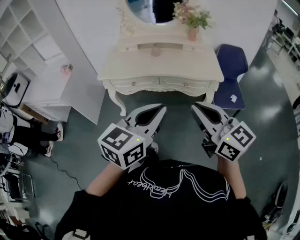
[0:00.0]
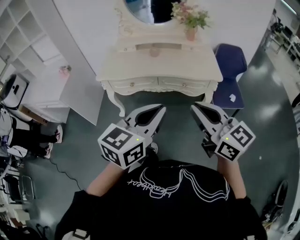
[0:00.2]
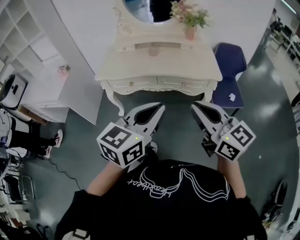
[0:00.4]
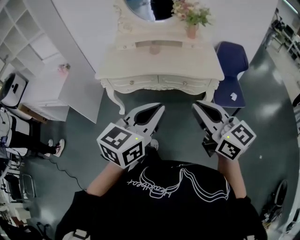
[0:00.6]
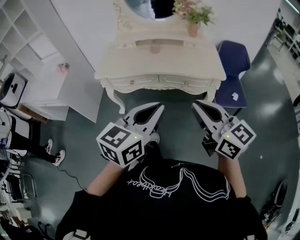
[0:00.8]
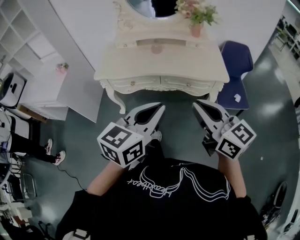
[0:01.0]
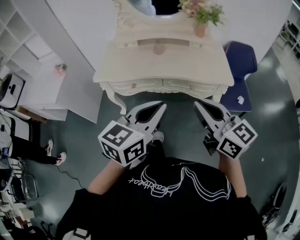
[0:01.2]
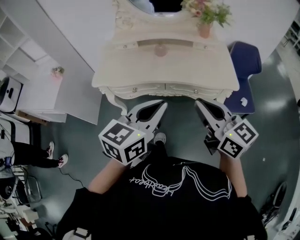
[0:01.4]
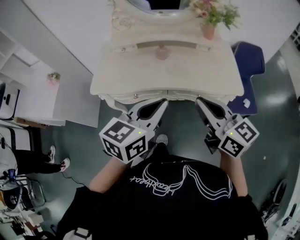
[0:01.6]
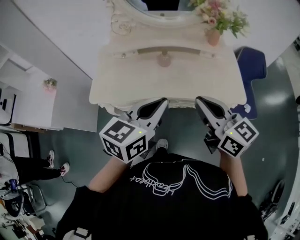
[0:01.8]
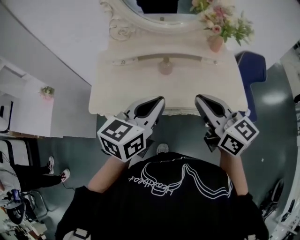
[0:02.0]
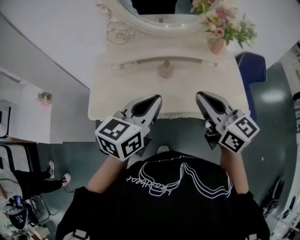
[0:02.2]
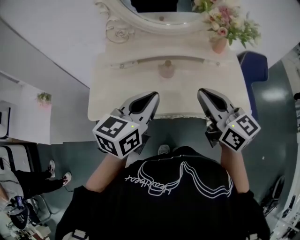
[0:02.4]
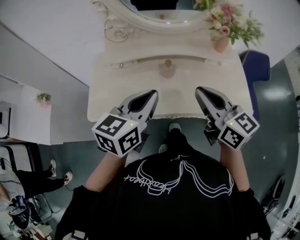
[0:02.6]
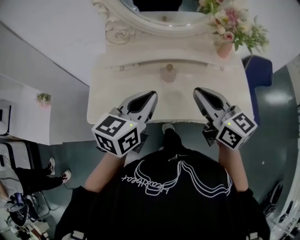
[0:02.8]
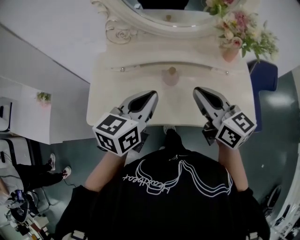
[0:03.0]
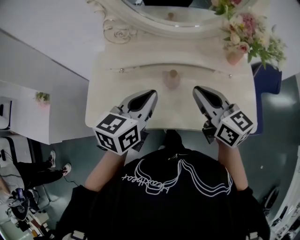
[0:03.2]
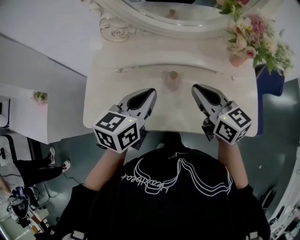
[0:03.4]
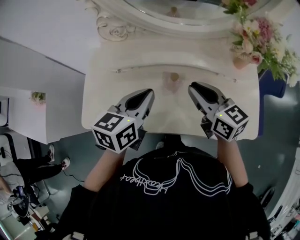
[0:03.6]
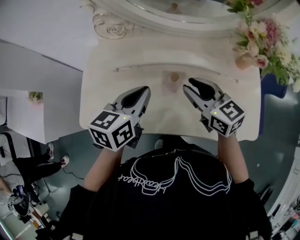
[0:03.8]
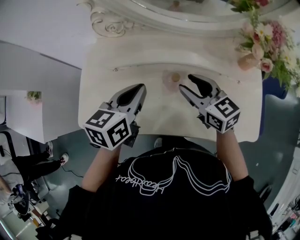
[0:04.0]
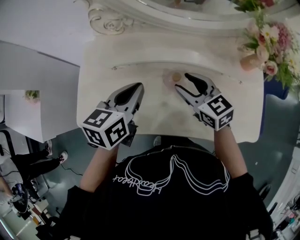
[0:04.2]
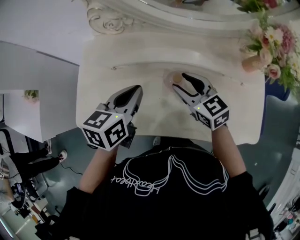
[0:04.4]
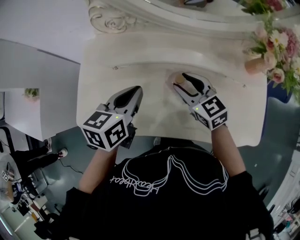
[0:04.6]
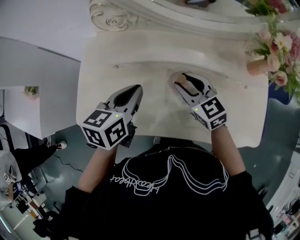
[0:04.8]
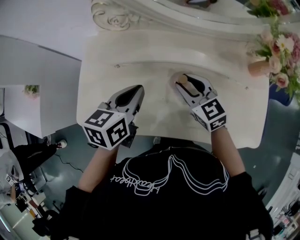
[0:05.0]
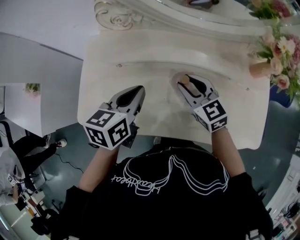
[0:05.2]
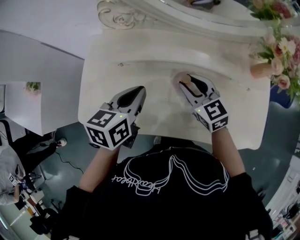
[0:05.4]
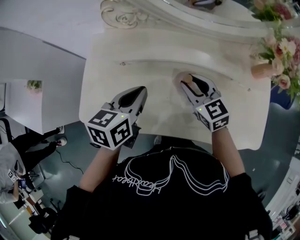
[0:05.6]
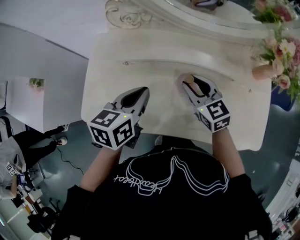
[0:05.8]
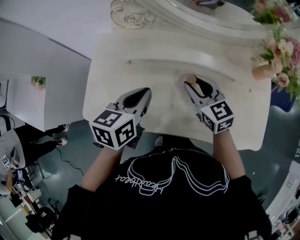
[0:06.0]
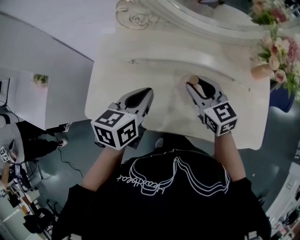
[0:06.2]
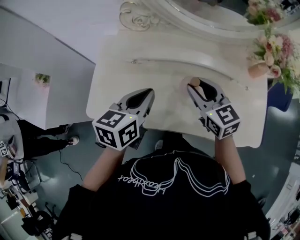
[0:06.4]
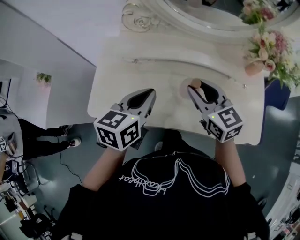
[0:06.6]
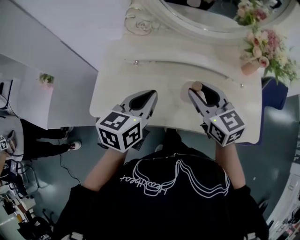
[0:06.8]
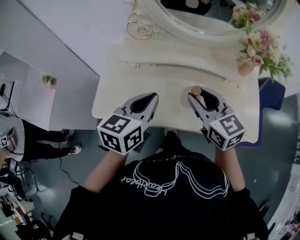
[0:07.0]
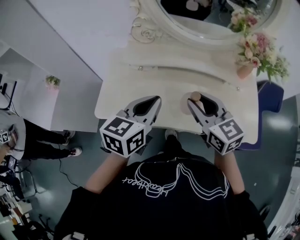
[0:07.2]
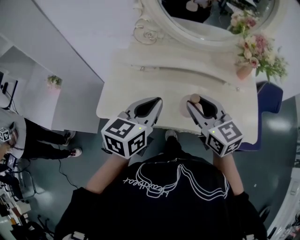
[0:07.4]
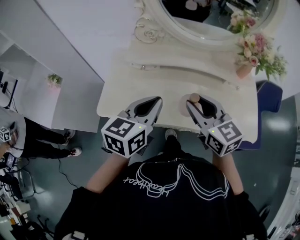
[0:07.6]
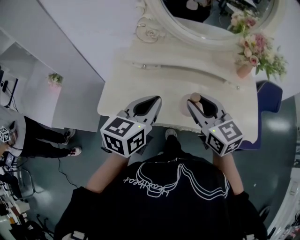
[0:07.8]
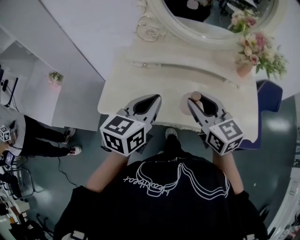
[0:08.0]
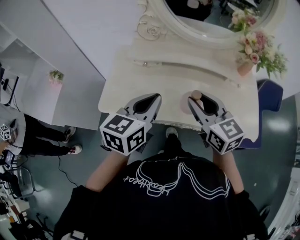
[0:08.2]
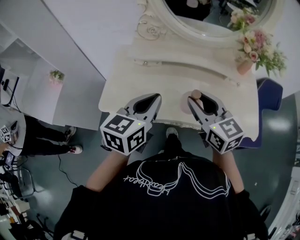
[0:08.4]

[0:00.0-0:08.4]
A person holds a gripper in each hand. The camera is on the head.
0.0 to 1.4 s: The two grippers go approximately 20 cm forward.
1.4 to 2.8 s: The two grippers go approximately 30 cm forward.
2.8 to 4.2 s: The two grippers go approximately 20 cm forward and downward. The right gripper rotates about 30 degrees, and opens.
4.2 to 5.6 s: The grippers make only small movements.
5.6 to 7.0 s: The right gripper moves upward and backward, some 20 cm. The left gripper travels backward and upward by some 15 cm.
7.0 to 8.4 s: Both grippers travel together backward, roughly 5 cm.

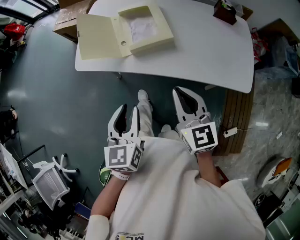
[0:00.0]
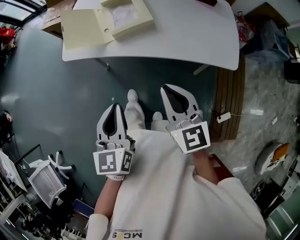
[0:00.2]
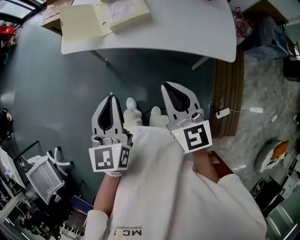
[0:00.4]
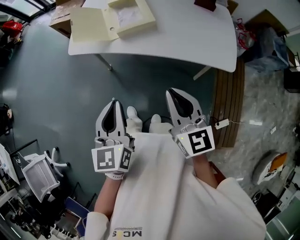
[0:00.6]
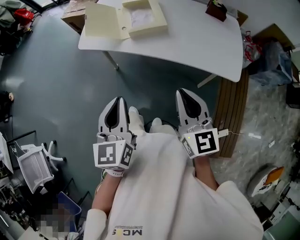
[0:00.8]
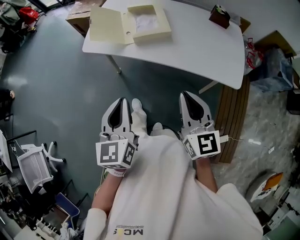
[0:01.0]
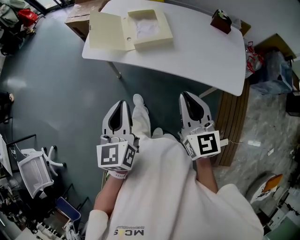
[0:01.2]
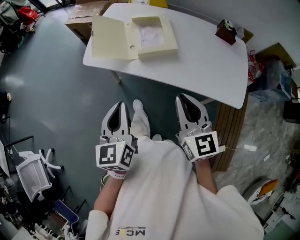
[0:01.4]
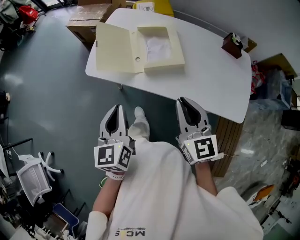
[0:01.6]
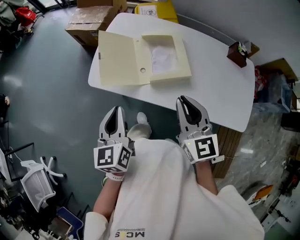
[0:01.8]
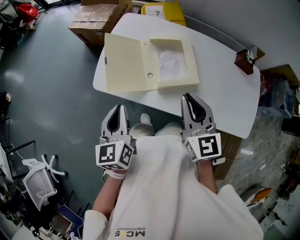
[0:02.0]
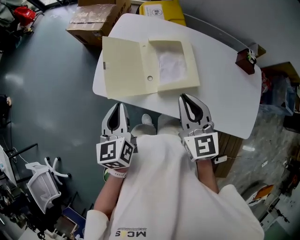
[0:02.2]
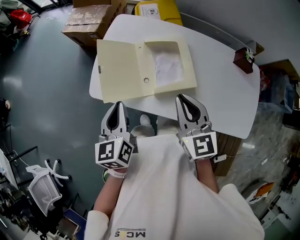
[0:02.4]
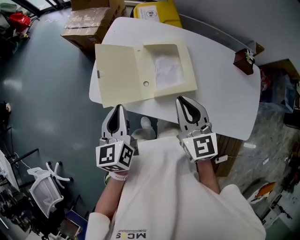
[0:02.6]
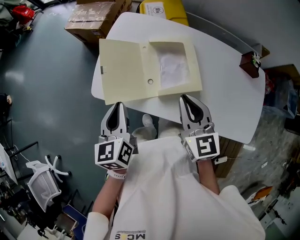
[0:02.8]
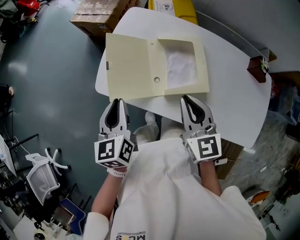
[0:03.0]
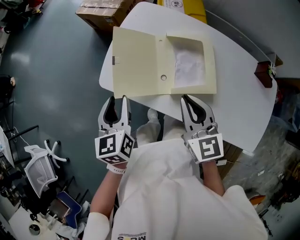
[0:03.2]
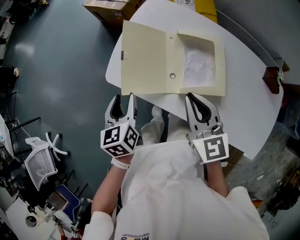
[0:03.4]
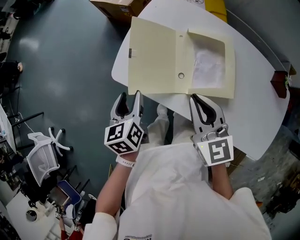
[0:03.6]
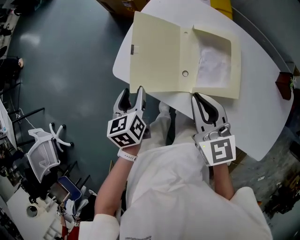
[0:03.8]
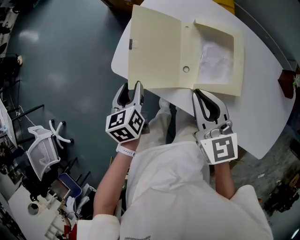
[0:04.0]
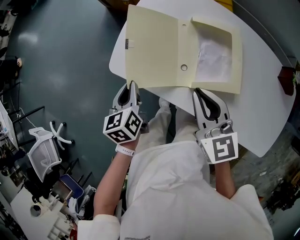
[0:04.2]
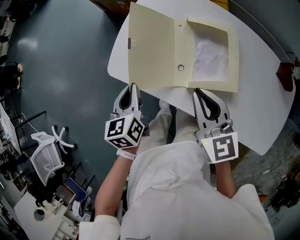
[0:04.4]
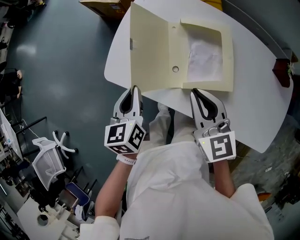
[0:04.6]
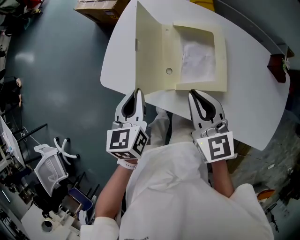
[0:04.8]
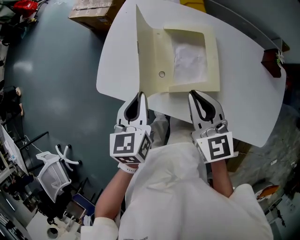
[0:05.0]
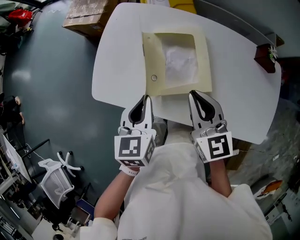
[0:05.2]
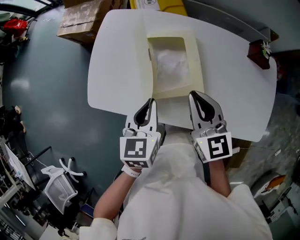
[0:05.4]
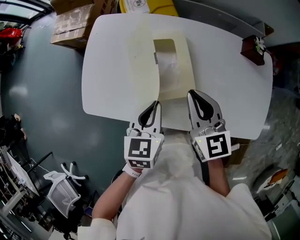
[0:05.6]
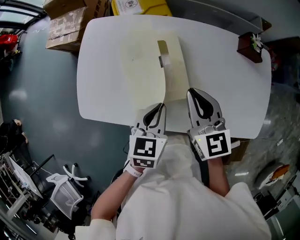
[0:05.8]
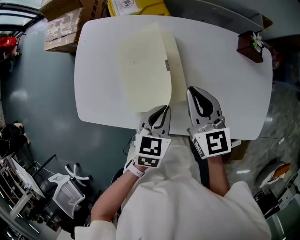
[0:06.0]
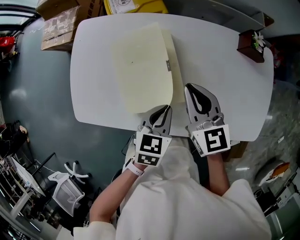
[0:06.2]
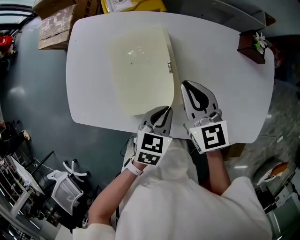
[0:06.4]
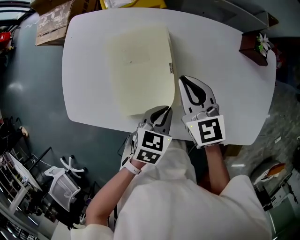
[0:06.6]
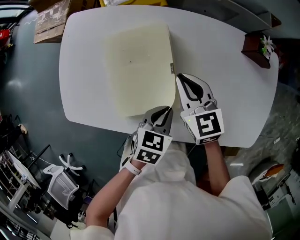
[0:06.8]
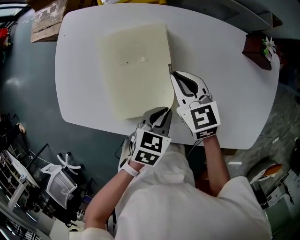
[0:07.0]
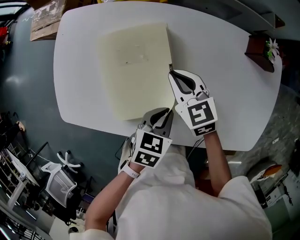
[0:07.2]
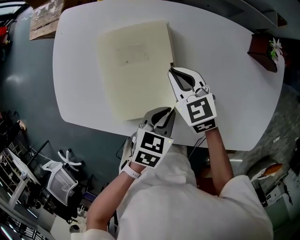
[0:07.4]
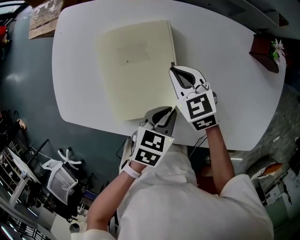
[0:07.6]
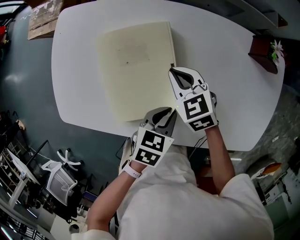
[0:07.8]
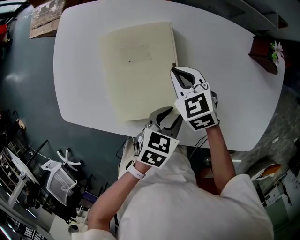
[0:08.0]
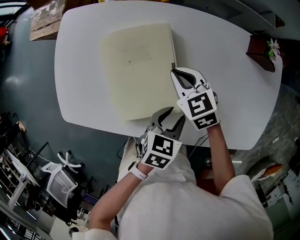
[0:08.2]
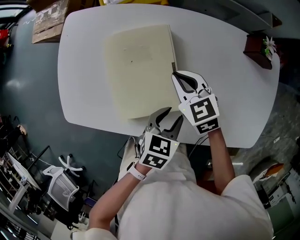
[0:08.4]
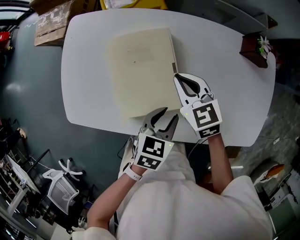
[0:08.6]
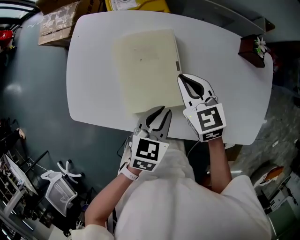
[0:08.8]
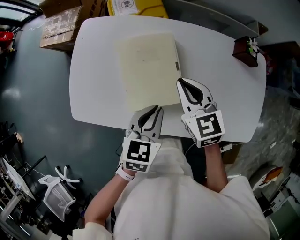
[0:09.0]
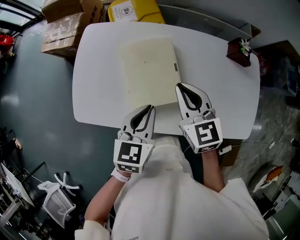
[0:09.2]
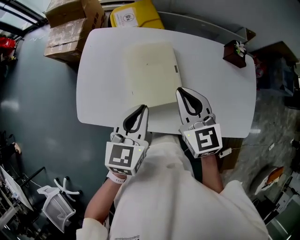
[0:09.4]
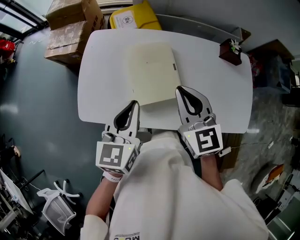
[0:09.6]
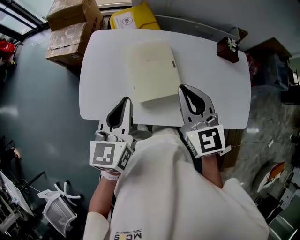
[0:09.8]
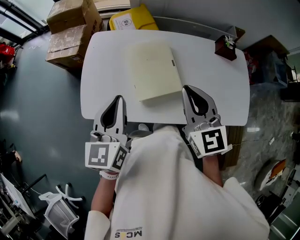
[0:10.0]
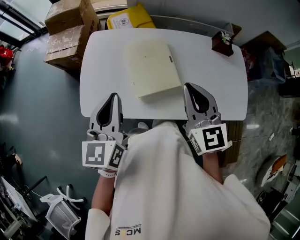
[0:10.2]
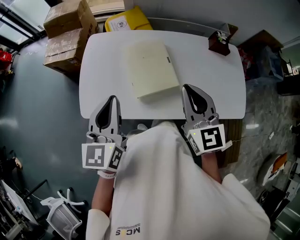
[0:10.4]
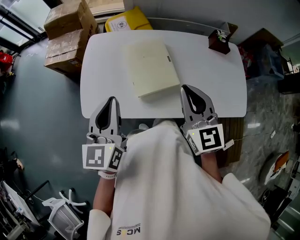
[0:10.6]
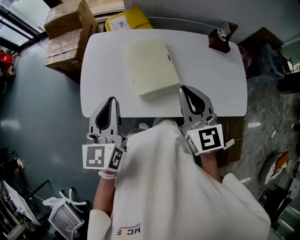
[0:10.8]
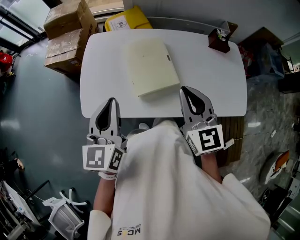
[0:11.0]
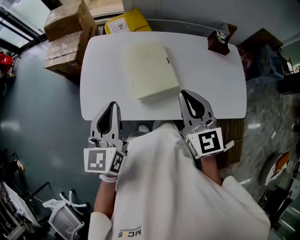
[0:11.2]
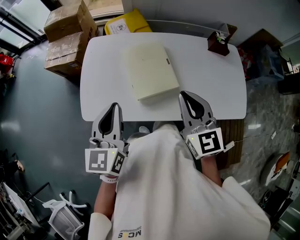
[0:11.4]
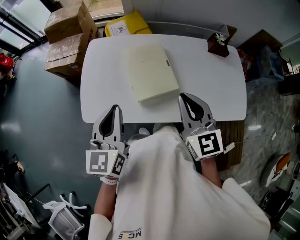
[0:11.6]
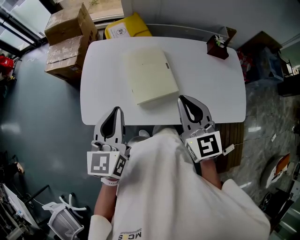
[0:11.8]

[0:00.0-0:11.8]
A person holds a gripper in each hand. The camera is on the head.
0.0 to 1.4 s: The right gripper goes backward and returns, about 15 cm each way; the left gripper shifts about 5 cm upward, reaches approximately 10 cm backward, then returns, and closes its fingers.
1.4 to 3.0 s: The grippers both shift forward by approximately 30 cm.
3.0 to 4.4 s: The right gripper moves some 10 cm; the left gripper moves downward, some 10 cm, and opens, then closes once more.
4.4 to 6.0 s: The left gripper ends up some 35 cm from where it was, and changes its angle by roughly 50 degrees. The right gripper ends up roughly 25 cm from where it was, and turns by roughly 20 degrees.
6.0 to 7.4 s: The left gripper heads downward and to the right, covering roughly 10 cm, while the right gripper goes approximately 20 cm downward and forward, and changes its angle by about 30 degrees.
7.4 to 8.8 s: The right gripper moves upward, roughly 10 cm; the left gripper heads upward and to the left, covering some 10 cm, and opens, then closes once more.
8.8 to 10.4 s: The right gripper shifts approximately 30 cm upward and backward, and changes its angle by approximately 30 degrees, while the left gripper shifts about 30 cm upward and to the left, and points its fingers approximately 30 degrees further upward.
10.4 to 11.8 s: The grippers move only a little.

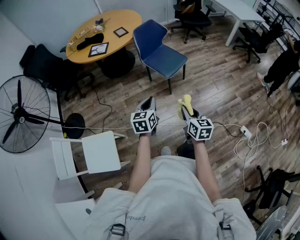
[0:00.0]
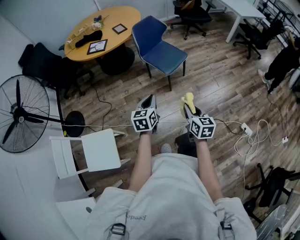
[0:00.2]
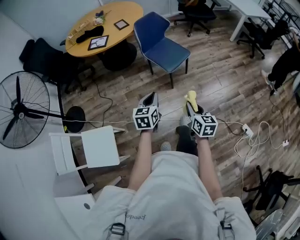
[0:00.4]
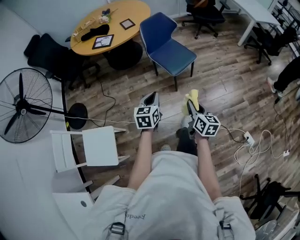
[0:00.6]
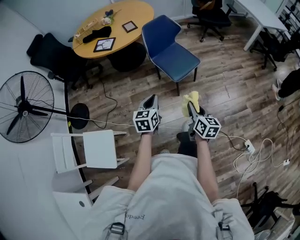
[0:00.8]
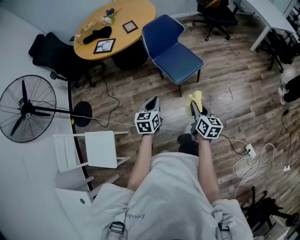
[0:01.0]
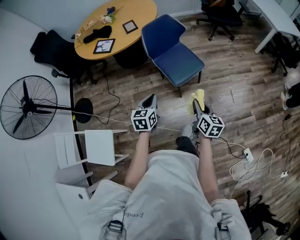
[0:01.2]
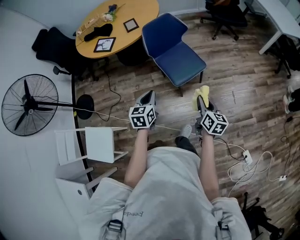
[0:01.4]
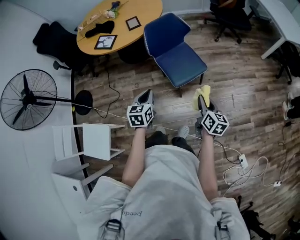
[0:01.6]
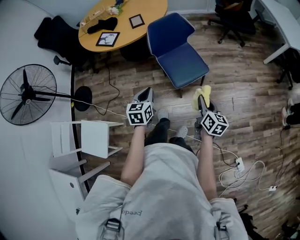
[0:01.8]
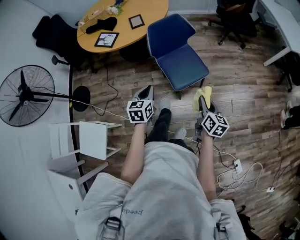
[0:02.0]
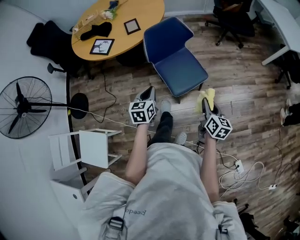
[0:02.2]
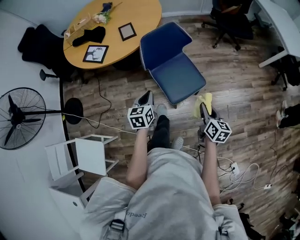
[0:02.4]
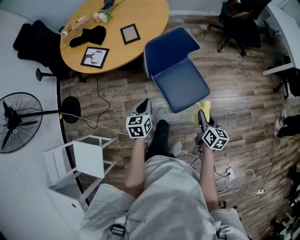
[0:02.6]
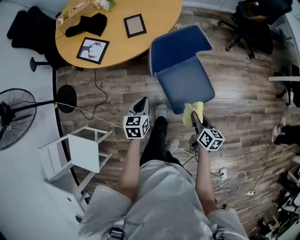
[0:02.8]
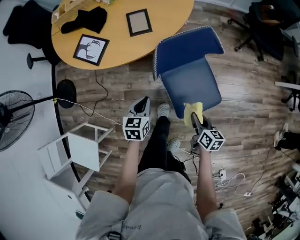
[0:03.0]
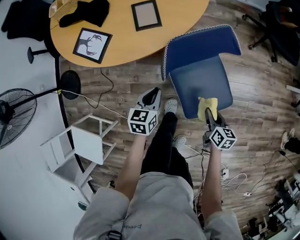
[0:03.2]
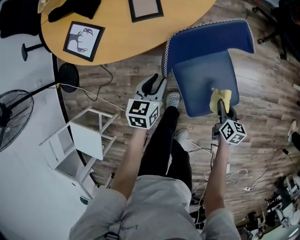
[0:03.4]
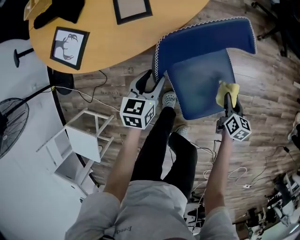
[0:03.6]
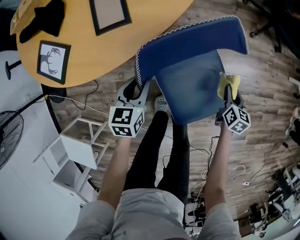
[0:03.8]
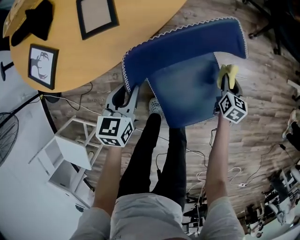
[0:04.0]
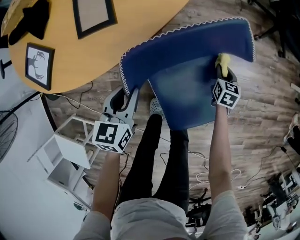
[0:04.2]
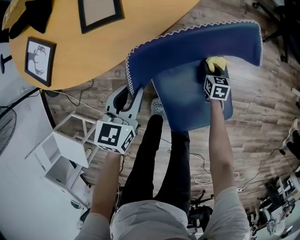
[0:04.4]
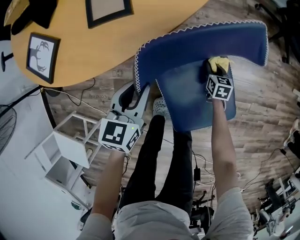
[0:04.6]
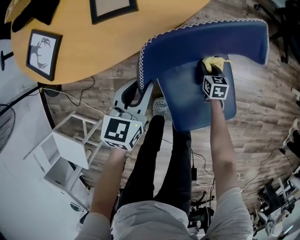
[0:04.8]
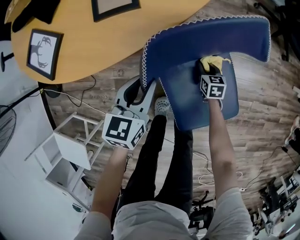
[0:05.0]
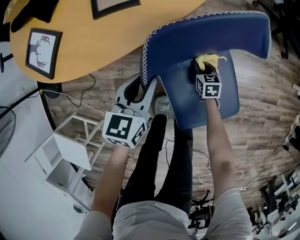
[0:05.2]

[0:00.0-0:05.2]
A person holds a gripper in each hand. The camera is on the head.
0.0 to 1.8 s: The right gripper is displaced forward and to the right by approximately 40 cm, while the left gripper travels forward by about 25 cm.
1.8 to 3.4 s: Both grippers travel together forward and downward, some 50 cm. The right gripper changes its angle by roughly 30 degrees, while the left gripper opens.
3.4 to 5.2 s: The right gripper is displaced downward, forward and to the left by about 30 cm, and rotates roughly 30 degrees. Meanwhile the left gripper ends up approximately 5 cm from where it was.
